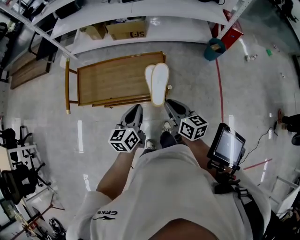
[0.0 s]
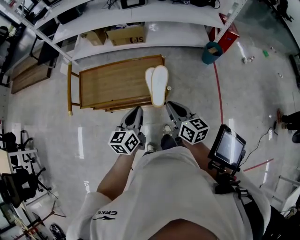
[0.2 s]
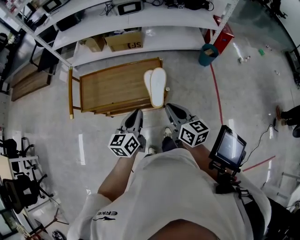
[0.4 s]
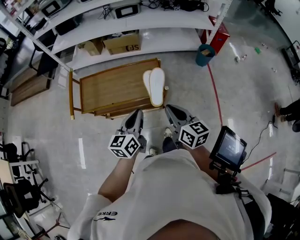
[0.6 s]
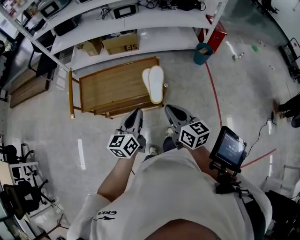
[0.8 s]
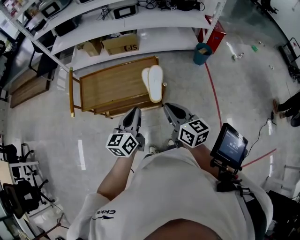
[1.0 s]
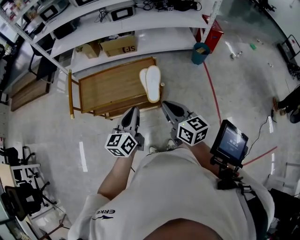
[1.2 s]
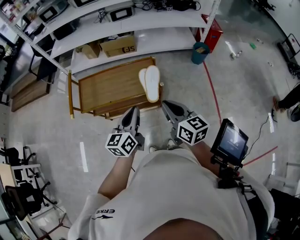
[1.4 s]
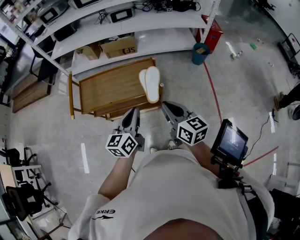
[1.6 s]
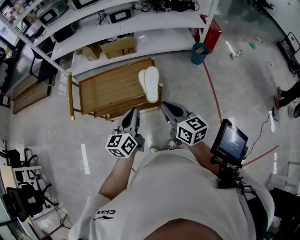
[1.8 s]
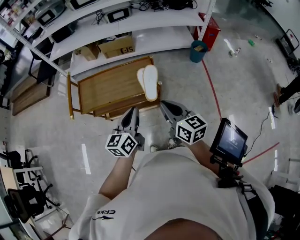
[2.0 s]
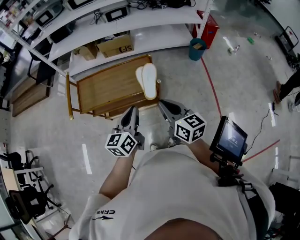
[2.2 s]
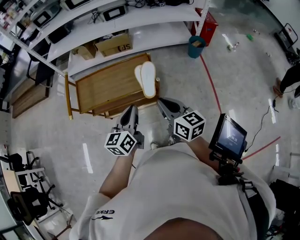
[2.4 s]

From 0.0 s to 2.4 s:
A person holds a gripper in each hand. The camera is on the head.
From 0.0 s to 1.2 s: The right gripper heads upward and backward, covering about 15 cm. The left gripper moves backward and upward, approximately 10 cm.
From 1.2 s to 2.4 s: The grippers move only a little.

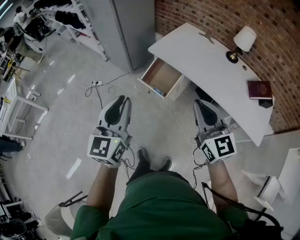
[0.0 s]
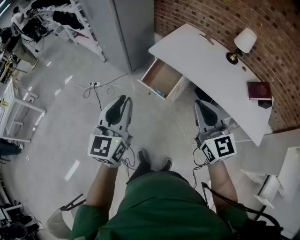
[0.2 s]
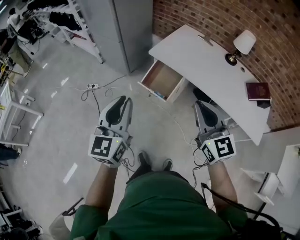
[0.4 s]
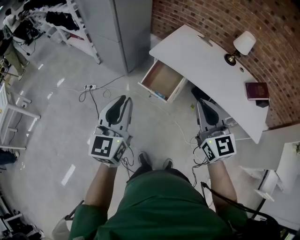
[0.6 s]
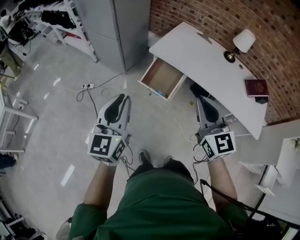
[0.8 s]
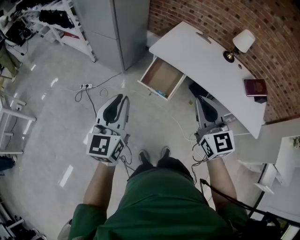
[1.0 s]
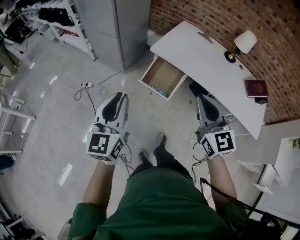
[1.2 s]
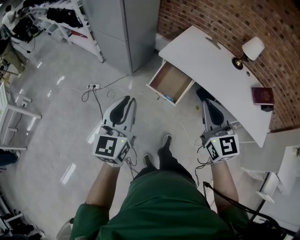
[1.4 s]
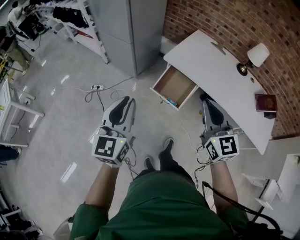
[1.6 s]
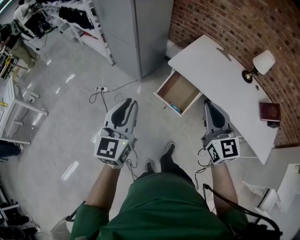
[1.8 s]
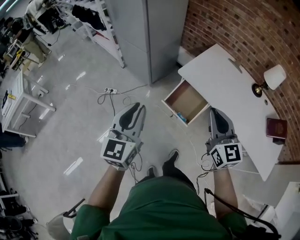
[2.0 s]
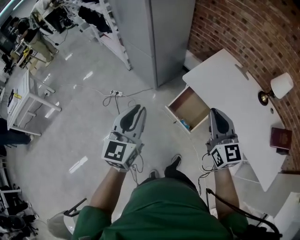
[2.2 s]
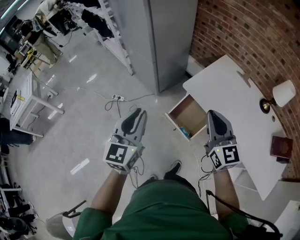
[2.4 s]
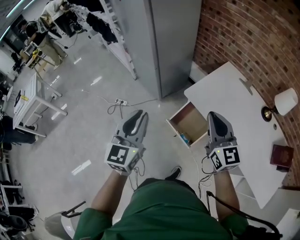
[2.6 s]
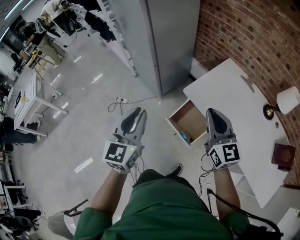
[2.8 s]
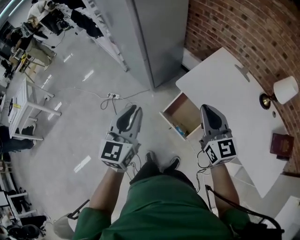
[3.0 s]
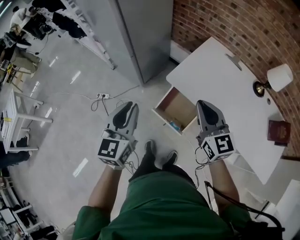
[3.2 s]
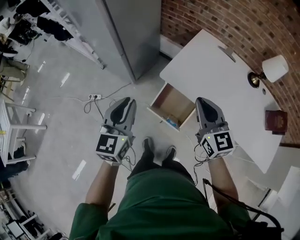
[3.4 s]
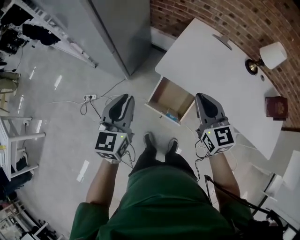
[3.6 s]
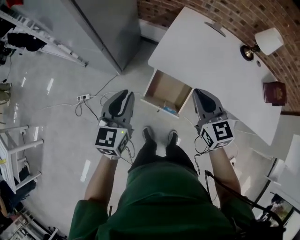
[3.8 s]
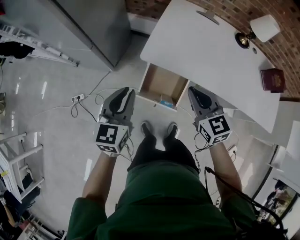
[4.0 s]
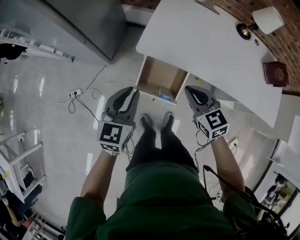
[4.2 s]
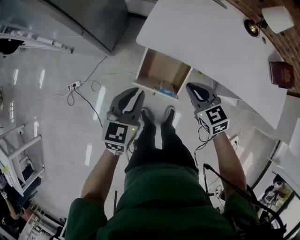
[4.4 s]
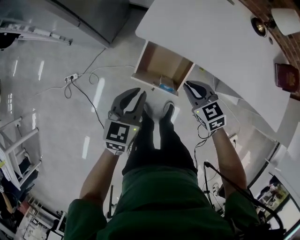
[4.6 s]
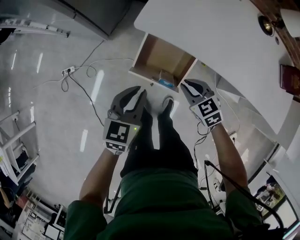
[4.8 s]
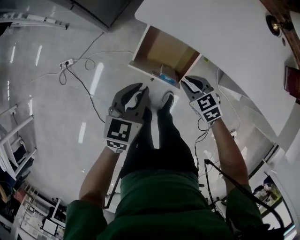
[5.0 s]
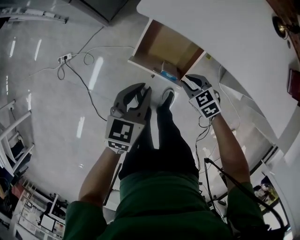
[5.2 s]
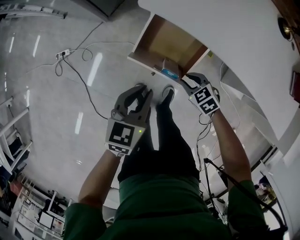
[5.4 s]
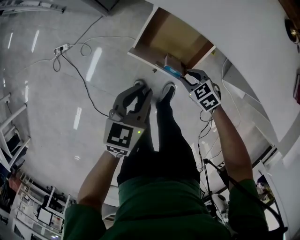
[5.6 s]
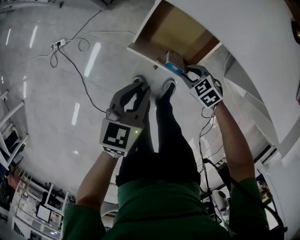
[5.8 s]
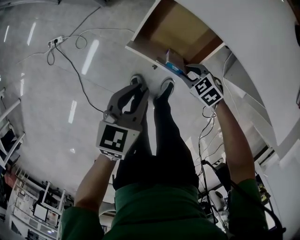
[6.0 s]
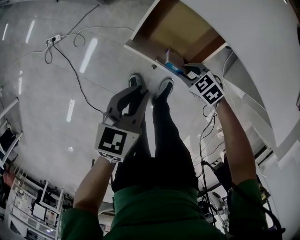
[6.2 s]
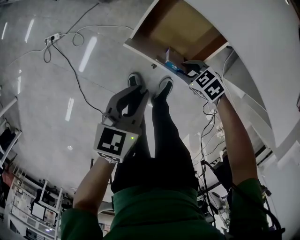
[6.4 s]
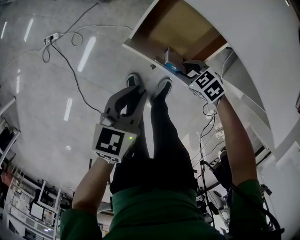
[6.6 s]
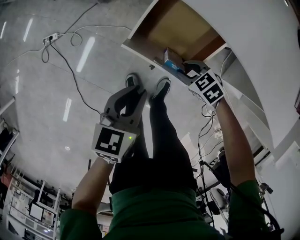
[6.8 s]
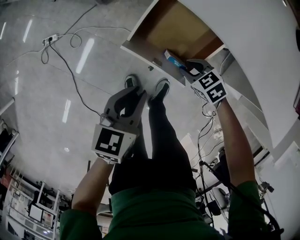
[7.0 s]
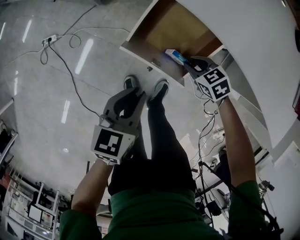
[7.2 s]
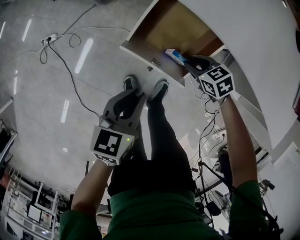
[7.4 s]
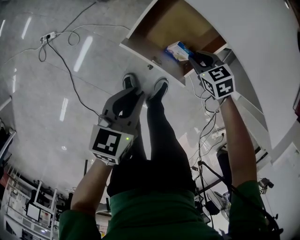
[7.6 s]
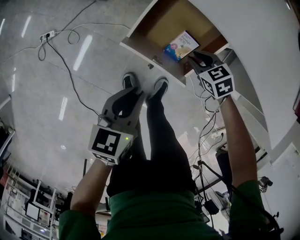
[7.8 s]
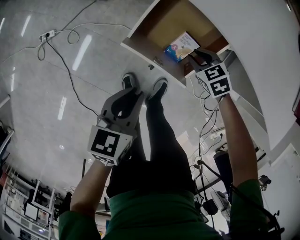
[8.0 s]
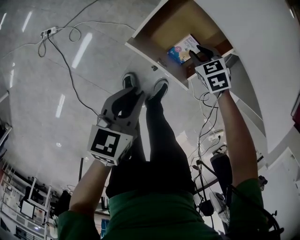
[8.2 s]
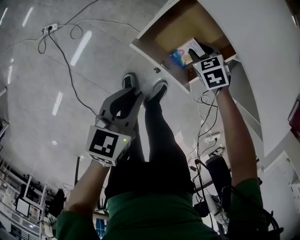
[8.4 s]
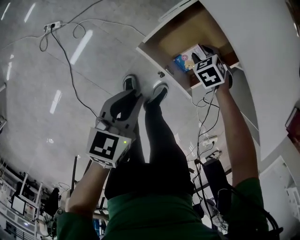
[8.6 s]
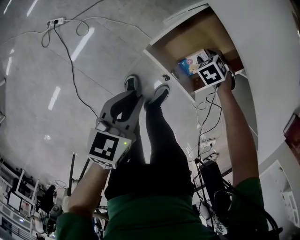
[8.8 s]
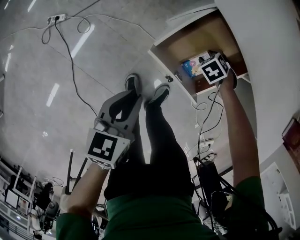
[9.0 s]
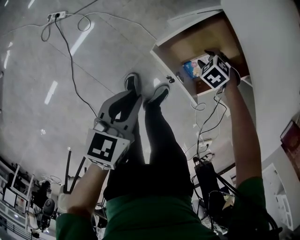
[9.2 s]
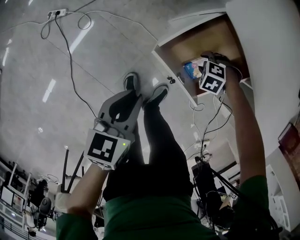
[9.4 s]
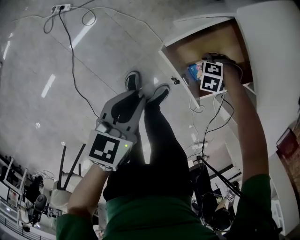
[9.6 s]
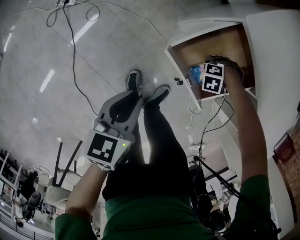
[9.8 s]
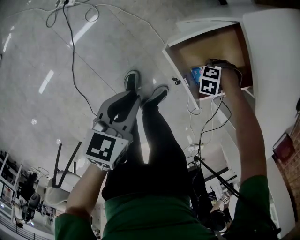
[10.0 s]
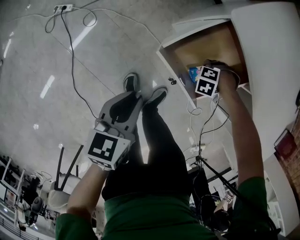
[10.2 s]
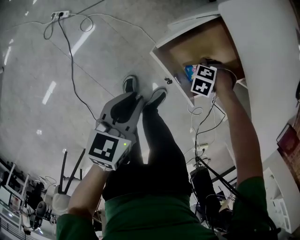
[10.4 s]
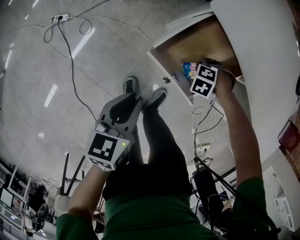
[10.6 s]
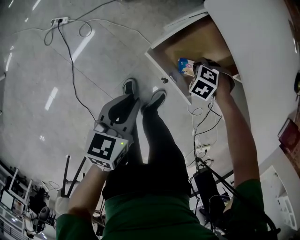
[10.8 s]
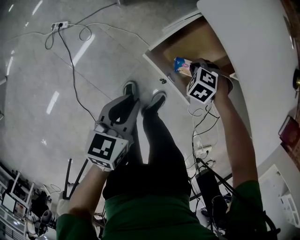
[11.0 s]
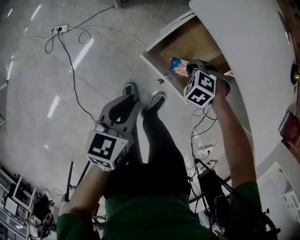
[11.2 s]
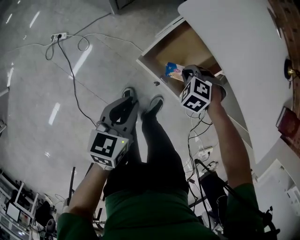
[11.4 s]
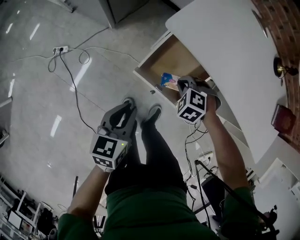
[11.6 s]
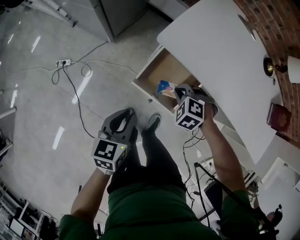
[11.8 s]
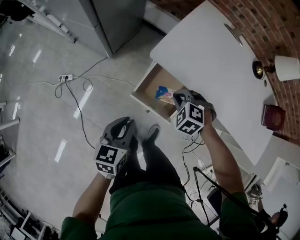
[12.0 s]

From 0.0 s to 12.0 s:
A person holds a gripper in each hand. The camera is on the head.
From 0.0 s to 1.6 s: Both grippers move to the left and forward, about 20 cm.
From 1.6 s to 3.0 s: Both grippers travel together forward, approximately 20 cm.
From 3.0 s to 4.4 s: Both grippers move downward, roughly 25 cm. The right gripper points its fingers some 30 degrees further downward; the left gripper changes its angle by approximately 40 degrees.
From 4.4 s to 6.0 s: The right gripper is displaced downward by some 35 cm, rotates roughly 40 degrees, and opens its fingers, while the left gripper moves downward, roughly 20 cm.
From 6.0 s to 7.6 s: The right gripper moves forward and to the right, approximately 10 cm.
From 7.6 s to 9.0 s: The left gripper shifts by some 10 cm, while the right gripper travels downward by some 10 cm, swivels some 40 degrees, and opens its fingers.
From 9.0 s to 10.4 s: The right gripper shifts by approximately 5 cm, rotates around the line of its fingers by roughly 40 degrees, counterclockwise from behind, and closes.
From 10.4 s to 12.0 s: The right gripper goes approximately 30 cm upward, and rotates approximately 40 degrees. The left gripper goes some 15 cm upward.

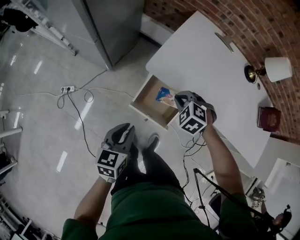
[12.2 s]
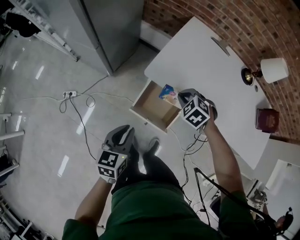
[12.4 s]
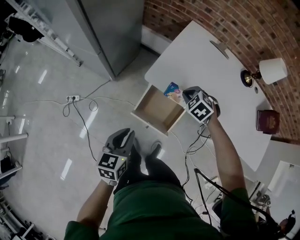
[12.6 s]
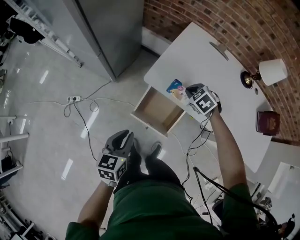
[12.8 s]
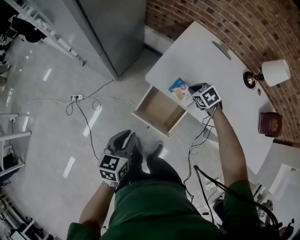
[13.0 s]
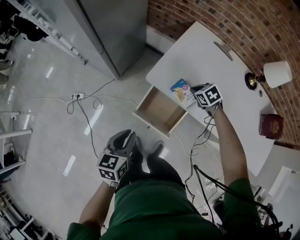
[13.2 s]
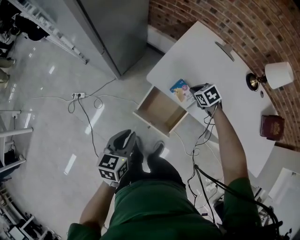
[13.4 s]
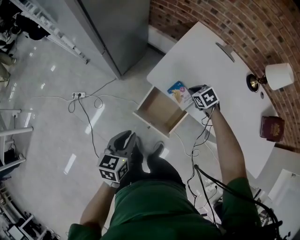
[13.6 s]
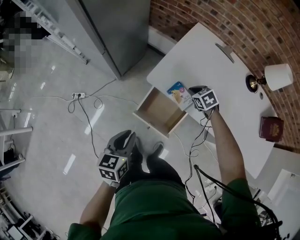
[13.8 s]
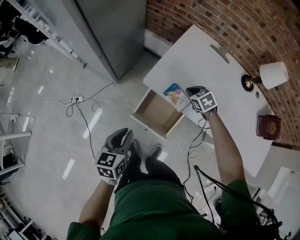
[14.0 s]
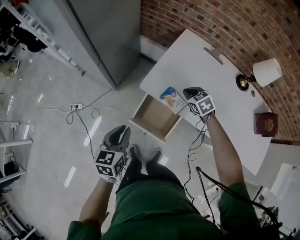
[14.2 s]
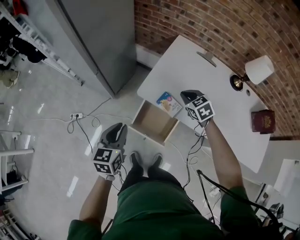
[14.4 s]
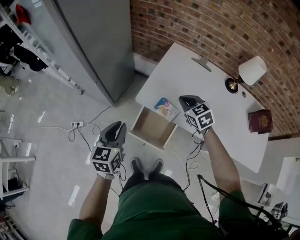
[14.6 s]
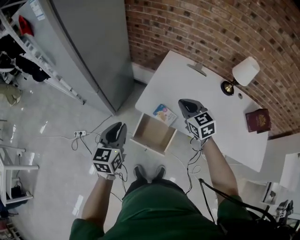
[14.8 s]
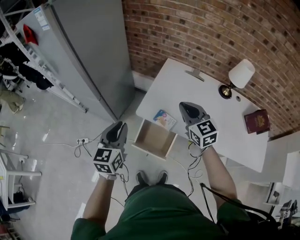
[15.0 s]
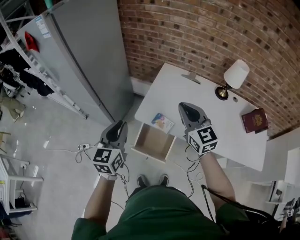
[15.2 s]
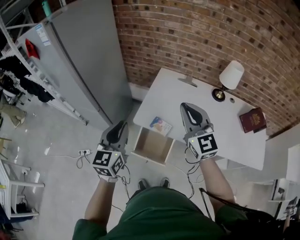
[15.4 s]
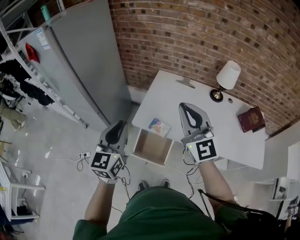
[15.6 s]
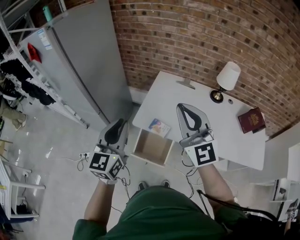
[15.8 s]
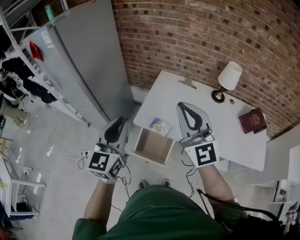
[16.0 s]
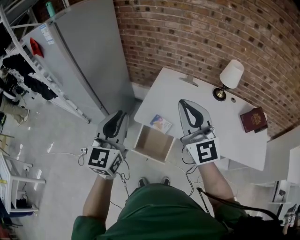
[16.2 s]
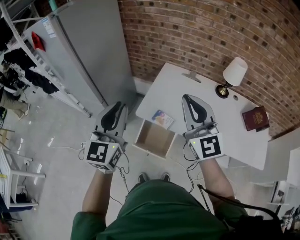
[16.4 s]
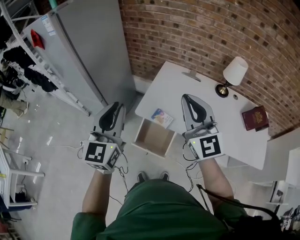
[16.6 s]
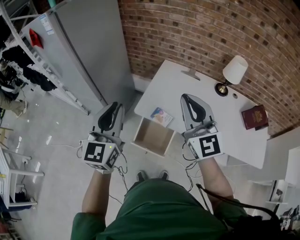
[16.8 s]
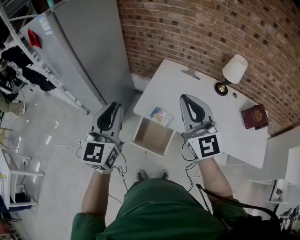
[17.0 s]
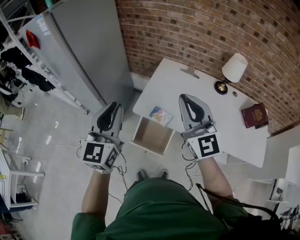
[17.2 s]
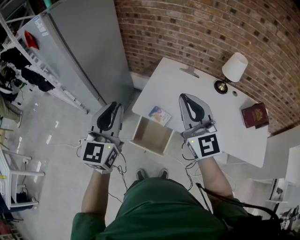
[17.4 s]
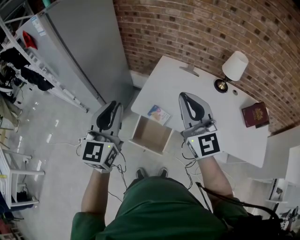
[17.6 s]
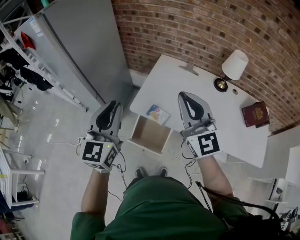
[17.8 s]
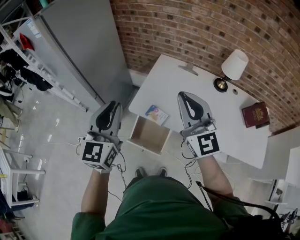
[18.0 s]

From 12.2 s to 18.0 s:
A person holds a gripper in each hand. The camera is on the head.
From 12.2 s to 13.6 s: The right gripper shifts about 15 cm to the right, forward and downward, and changes its angle by roughly 30 degrees.
From 13.6 s to 15.0 s: The right gripper goes about 35 cm upward, and angles its fingers upward, by approximately 50 degrees; the left gripper moves upward and forward, approximately 20 cm, and turns by about 30 degrees.
From 15.0 s to 16.6 s: The left gripper moves upward, approximately 15 cm, and rotates some 20 degrees, while the right gripper heads upward and backward, covering about 20 cm, and swivels roughly 30 degrees.
From 16.6 s to 18.0 s: The left gripper changes place by about 5 cm. The right gripper shifts by some 5 cm.

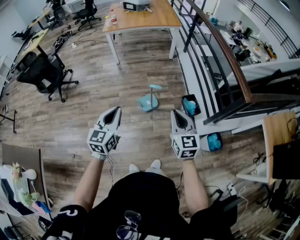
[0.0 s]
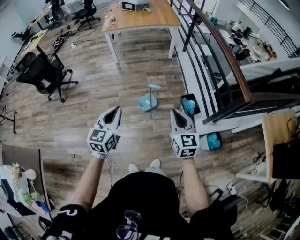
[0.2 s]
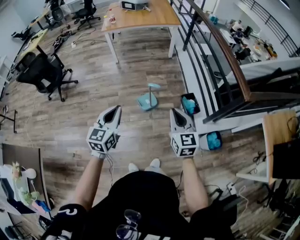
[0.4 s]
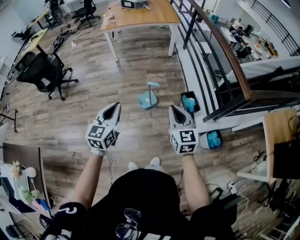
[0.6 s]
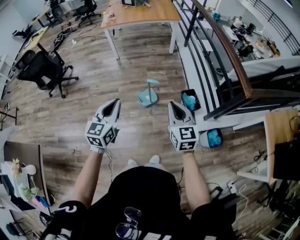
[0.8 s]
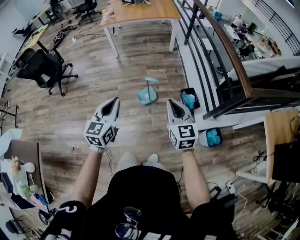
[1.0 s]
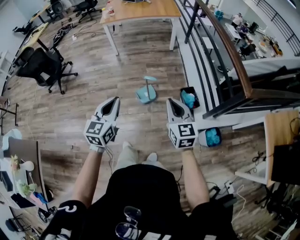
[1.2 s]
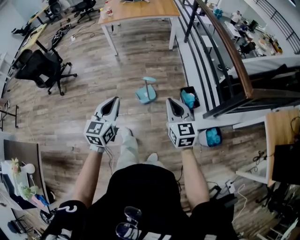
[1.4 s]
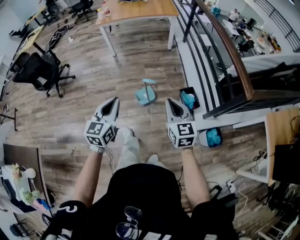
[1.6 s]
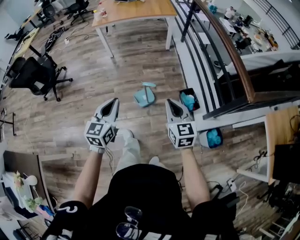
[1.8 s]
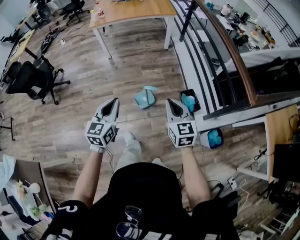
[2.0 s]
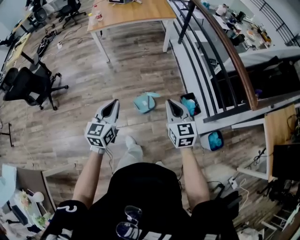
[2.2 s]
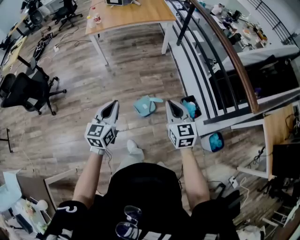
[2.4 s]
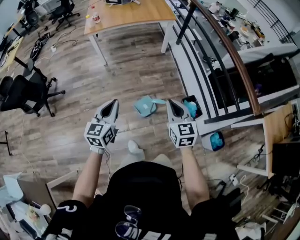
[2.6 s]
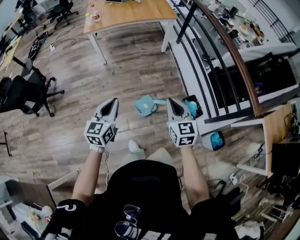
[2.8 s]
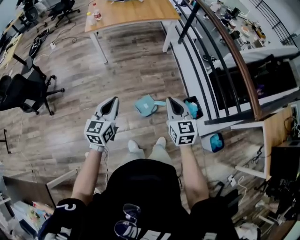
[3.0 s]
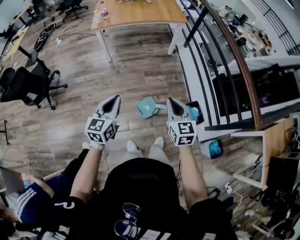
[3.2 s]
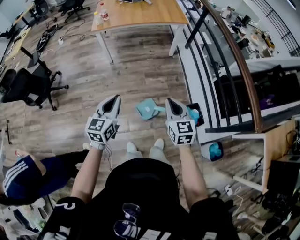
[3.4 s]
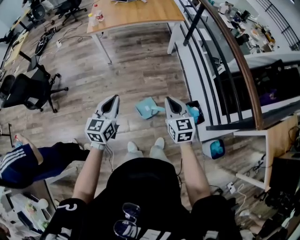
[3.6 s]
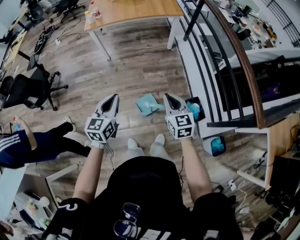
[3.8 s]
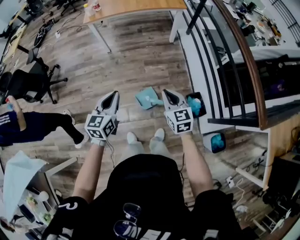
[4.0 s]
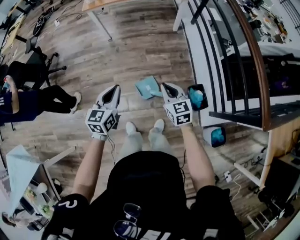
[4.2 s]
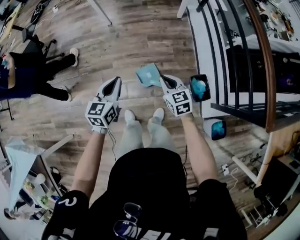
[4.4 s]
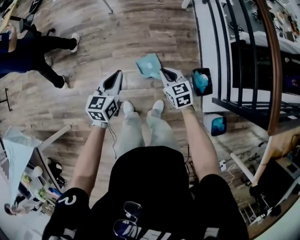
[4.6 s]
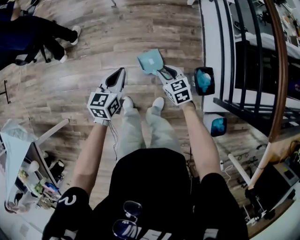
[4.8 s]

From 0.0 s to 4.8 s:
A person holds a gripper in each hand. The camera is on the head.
From 0.0 s to 1.6 s: The left gripper moves forward and to the right, roughly 10 cm; the right gripper heads forward, covering roughly 10 cm.
From 1.6 s to 3.2 s: Both grippers move forward and to the left, approximately 30 cm.
From 3.2 s to 4.8 s: The right gripper goes approximately 30 cm downward, swivels about 40 degrees, and opens. Meanwhile the left gripper shifts some 25 cm downward and to the right.
